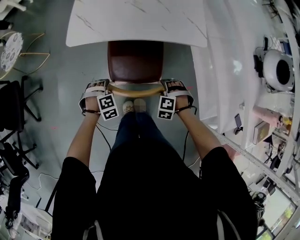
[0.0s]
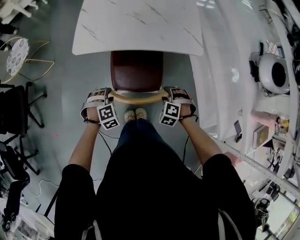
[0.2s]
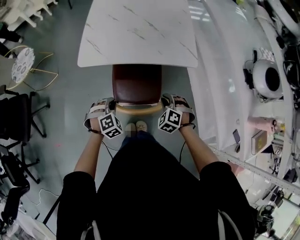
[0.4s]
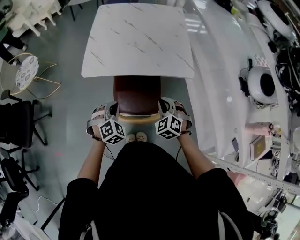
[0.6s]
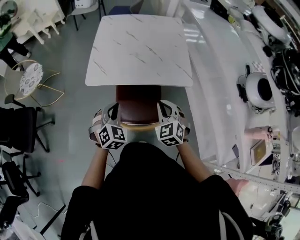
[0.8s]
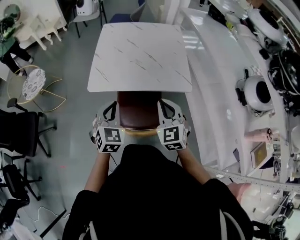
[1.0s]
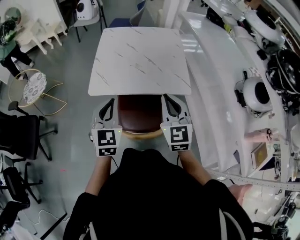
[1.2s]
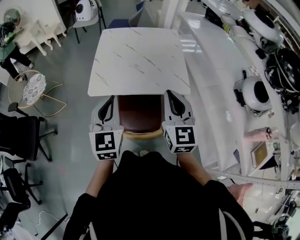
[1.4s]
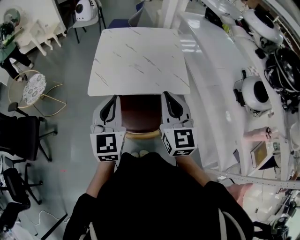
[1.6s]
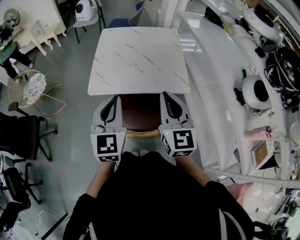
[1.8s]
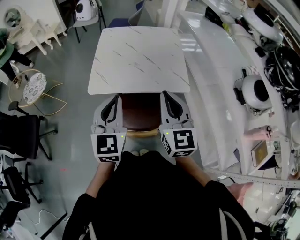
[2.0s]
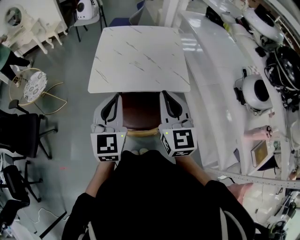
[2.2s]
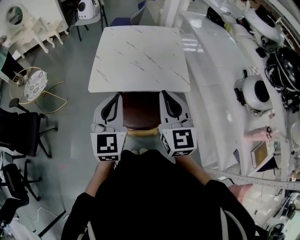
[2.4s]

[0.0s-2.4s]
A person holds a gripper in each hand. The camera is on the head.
0.0s to 1.2s: Both grippers move upward, some 40 cm. The left gripper points its fingers some 60 degrees further upward, and closes, while the right gripper angles its fingers upward, by about 60 degrees, and closes up.
1.2s to 2.4s: Both grippers move upward, roughly 5 cm.

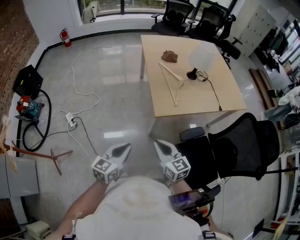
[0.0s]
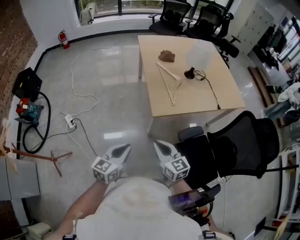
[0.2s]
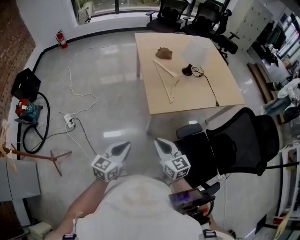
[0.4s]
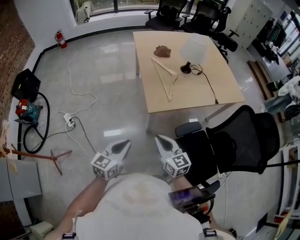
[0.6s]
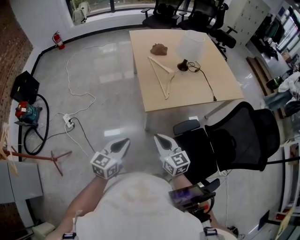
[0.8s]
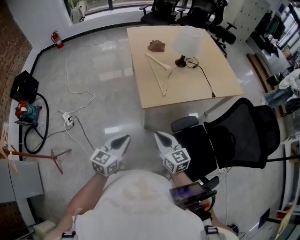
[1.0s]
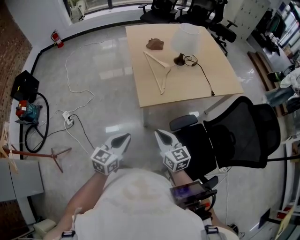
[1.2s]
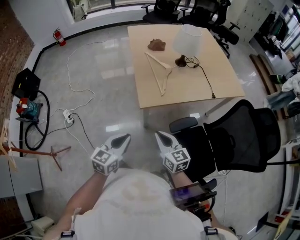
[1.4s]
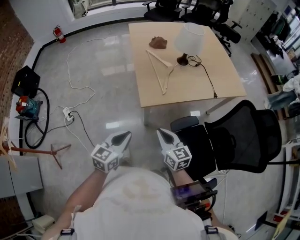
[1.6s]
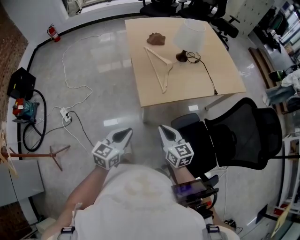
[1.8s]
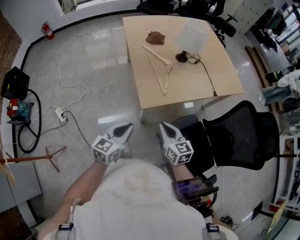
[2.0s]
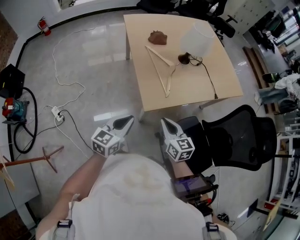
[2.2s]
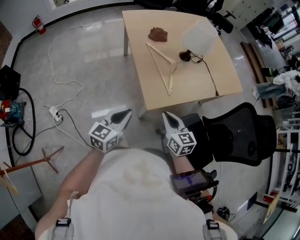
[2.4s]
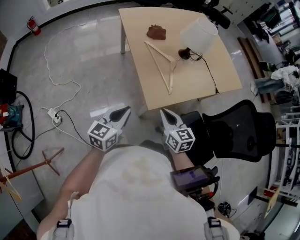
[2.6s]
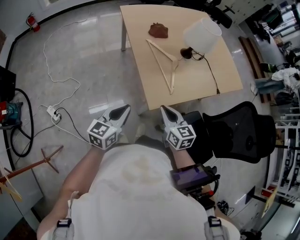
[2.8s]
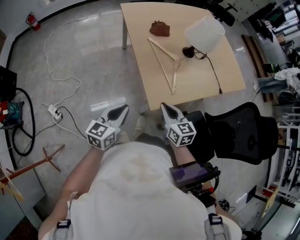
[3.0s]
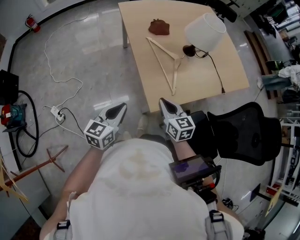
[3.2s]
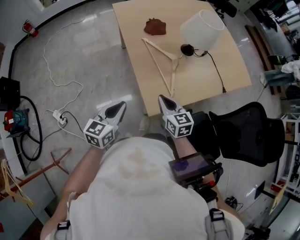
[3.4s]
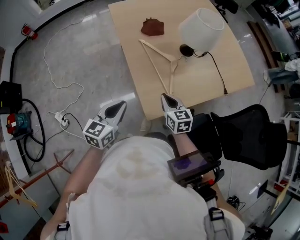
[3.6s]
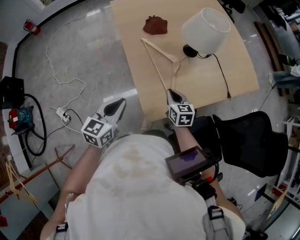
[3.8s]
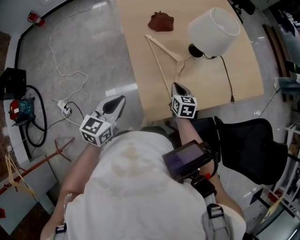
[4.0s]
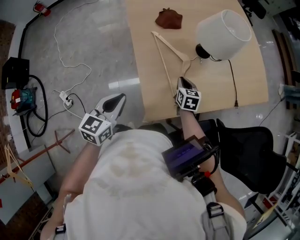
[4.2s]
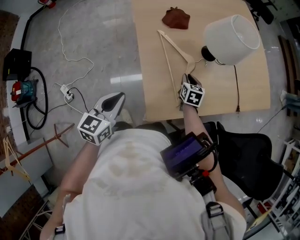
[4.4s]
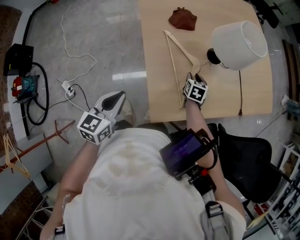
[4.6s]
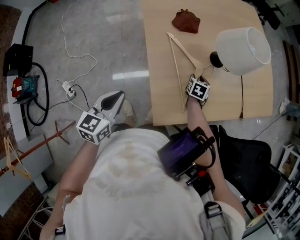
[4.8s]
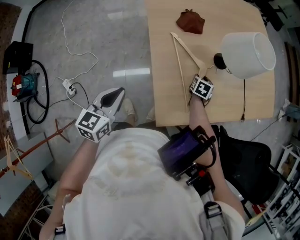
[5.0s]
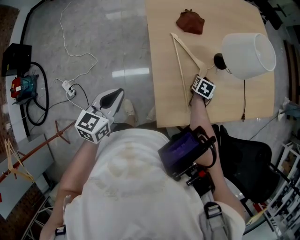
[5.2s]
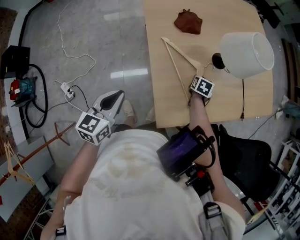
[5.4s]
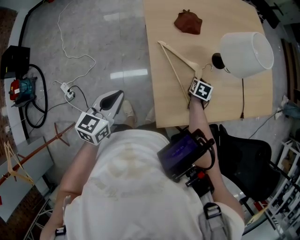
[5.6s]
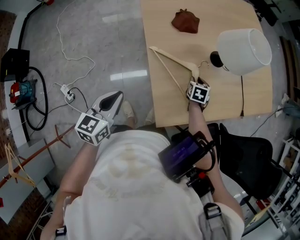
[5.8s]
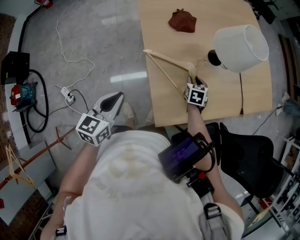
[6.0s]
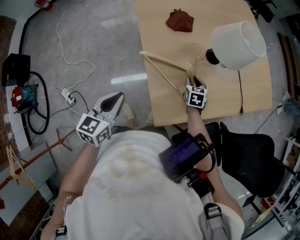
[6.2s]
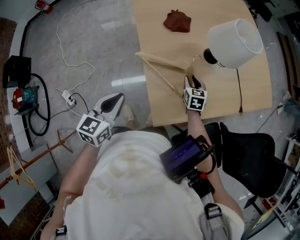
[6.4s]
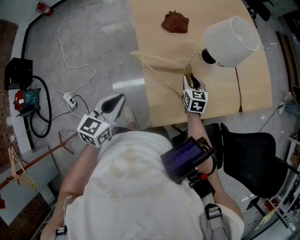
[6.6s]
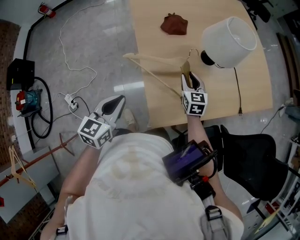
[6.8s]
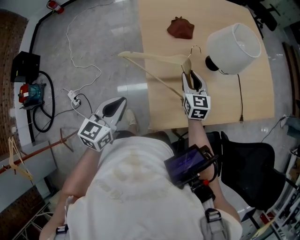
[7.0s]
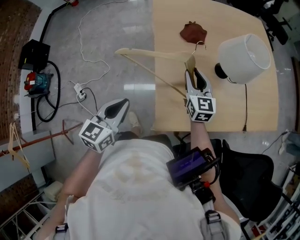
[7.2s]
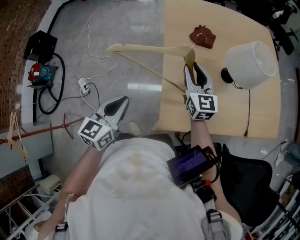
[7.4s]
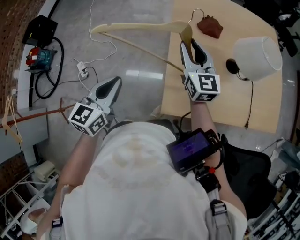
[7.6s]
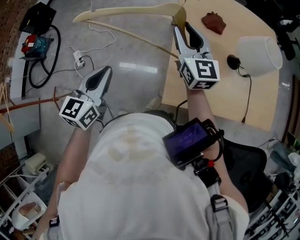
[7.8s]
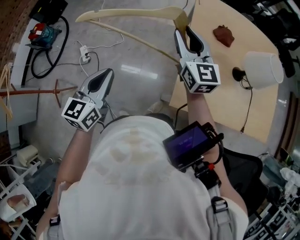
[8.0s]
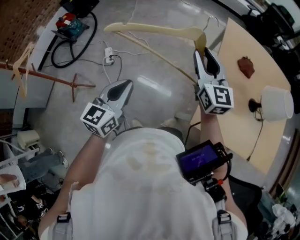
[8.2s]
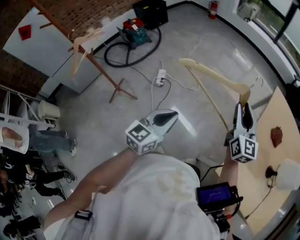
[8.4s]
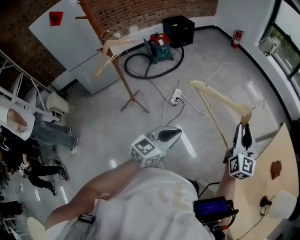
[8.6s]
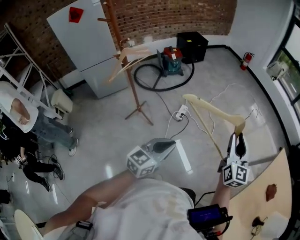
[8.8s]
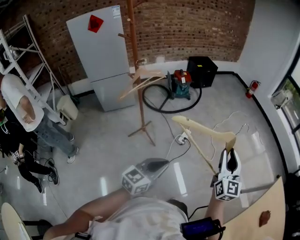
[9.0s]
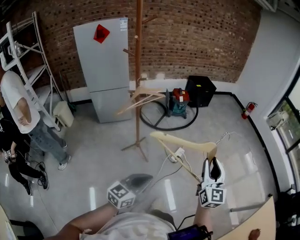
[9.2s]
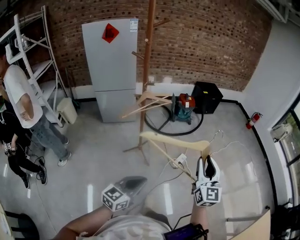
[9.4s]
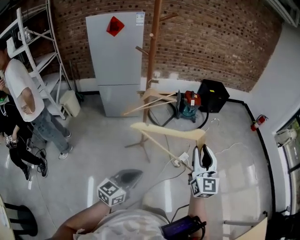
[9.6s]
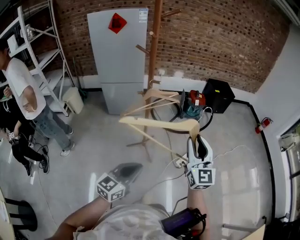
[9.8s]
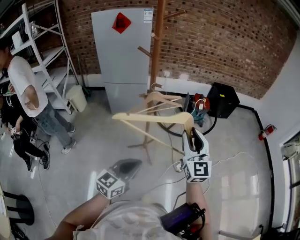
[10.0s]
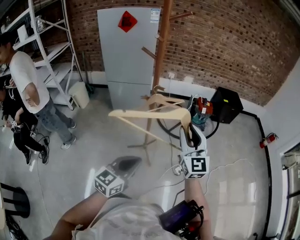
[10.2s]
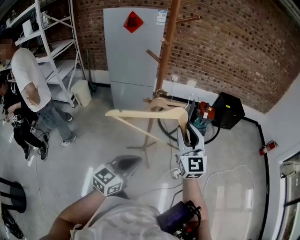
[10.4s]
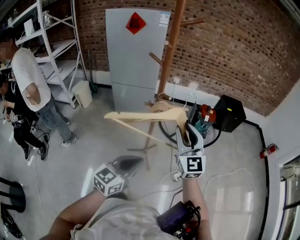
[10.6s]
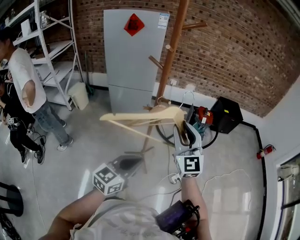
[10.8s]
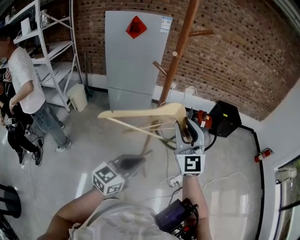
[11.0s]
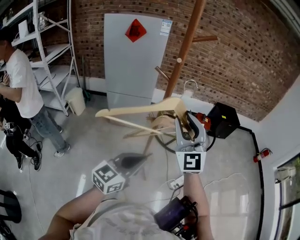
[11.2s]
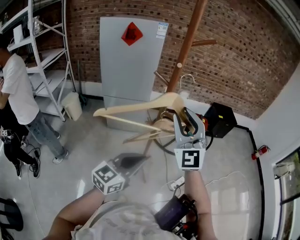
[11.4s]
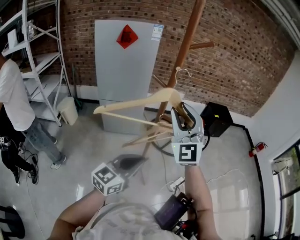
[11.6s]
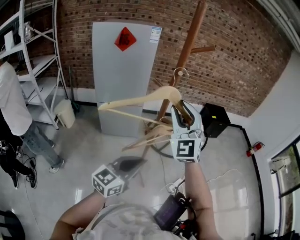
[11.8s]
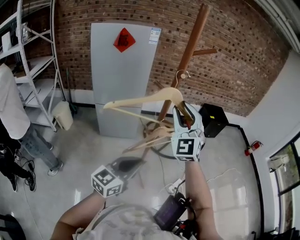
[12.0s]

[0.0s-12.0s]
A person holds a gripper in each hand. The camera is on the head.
0.0s to 1.6s: The two grippers go about 10 cm to the right.
1.6s to 3.0s: Both grippers move forward and to the left, some 25 cm.
3.0s to 4.4s: The right gripper moves forward, downward and to the right, approximately 35 cm, and swivels roughly 30 degrees. The left gripper moves forward, approximately 15 cm.
4.4s to 6.0s: The left gripper is displaced to the left by some 5 cm.
6.0s to 7.6s: The right gripper goes approximately 25 cm upward, and tips its fingers upward by some 50 degrees, while the left gripper moves upward, about 5 cm, and changes its angle by about 20 degrees.
7.6s to 9.0s: The pair of grippers is taken some 50 cm. The right gripper changes its angle by roughly 50 degrees; the left gripper rotates some 50 degrees.
9.0s to 10.4s: The right gripper moves approximately 50 cm, and turns by about 40 degrees. Meanwhile the left gripper shifts by approximately 25 cm, and rotates approximately 30 degrees.
10.4s to 12.0s: The left gripper heads to the left, forward and upward, covering approximately 15 cm; the right gripper goes some 25 cm to the left, upward and forward, and swivels some 40 degrees.

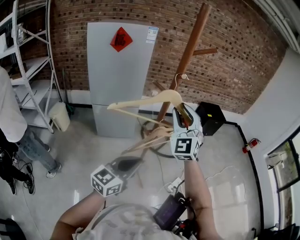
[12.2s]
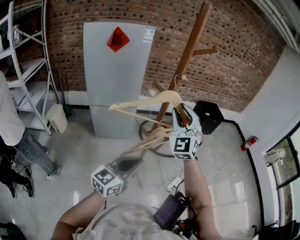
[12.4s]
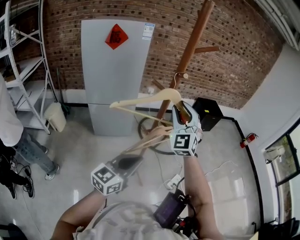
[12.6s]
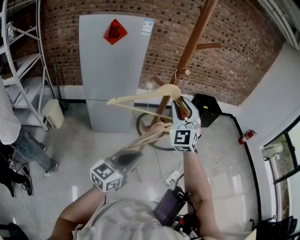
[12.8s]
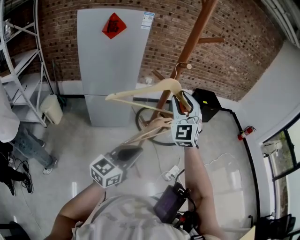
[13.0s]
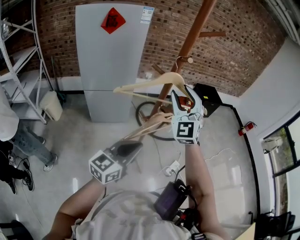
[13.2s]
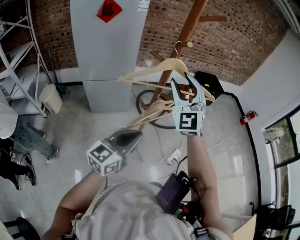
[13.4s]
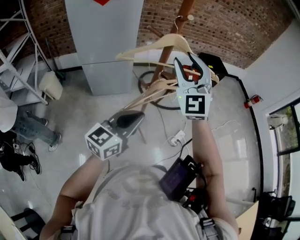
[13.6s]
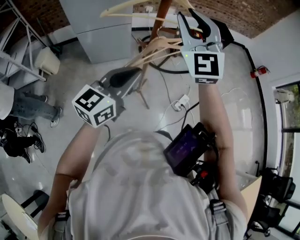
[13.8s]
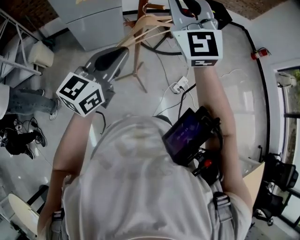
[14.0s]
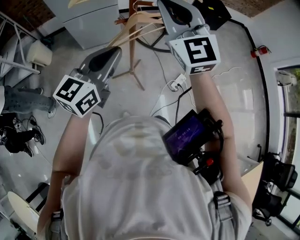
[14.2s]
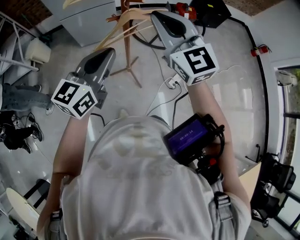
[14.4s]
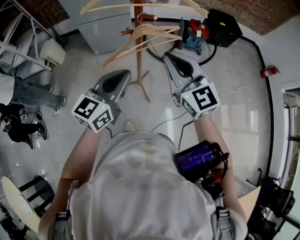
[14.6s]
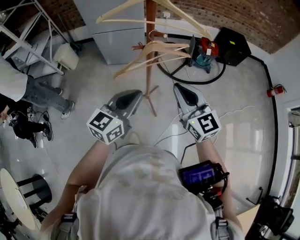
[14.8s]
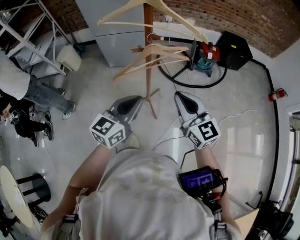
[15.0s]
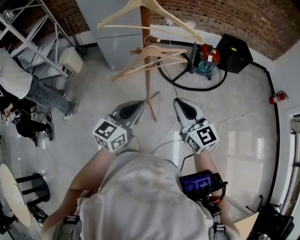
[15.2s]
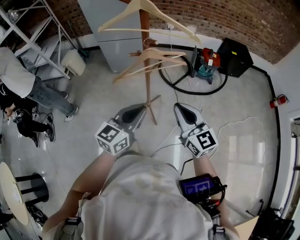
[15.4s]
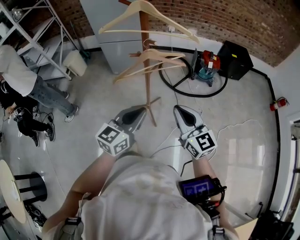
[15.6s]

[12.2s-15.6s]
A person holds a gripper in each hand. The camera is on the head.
12.2s to 13.8s: There are only small adjustments of the grippers.
13.8s to 15.6s: The right gripper goes some 30 cm downward, backward and to the right, twists about 40 degrees clockwise, seen from behind, and closes up, while the left gripper goes about 15 cm to the right, backward and downward.

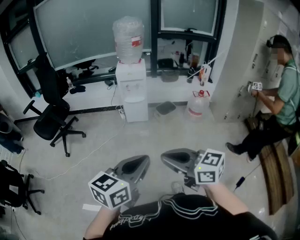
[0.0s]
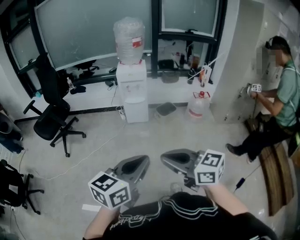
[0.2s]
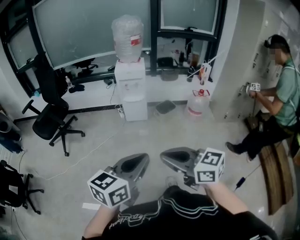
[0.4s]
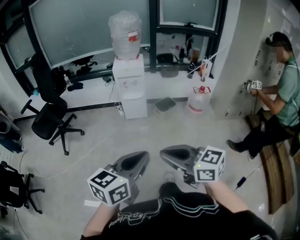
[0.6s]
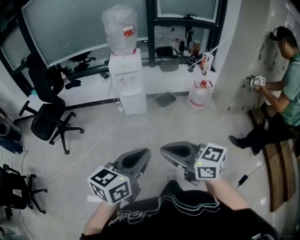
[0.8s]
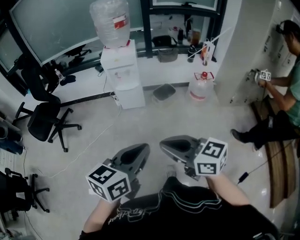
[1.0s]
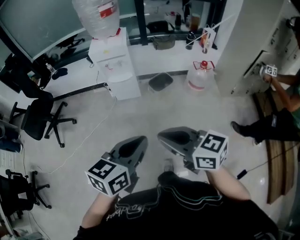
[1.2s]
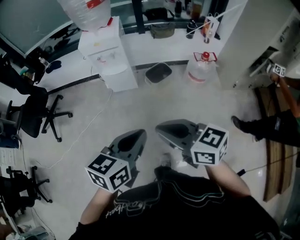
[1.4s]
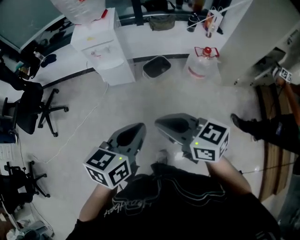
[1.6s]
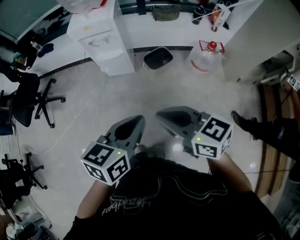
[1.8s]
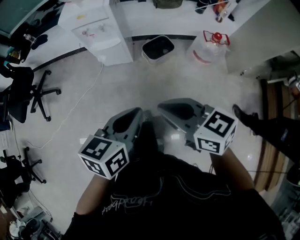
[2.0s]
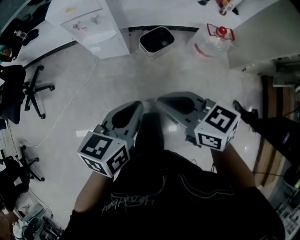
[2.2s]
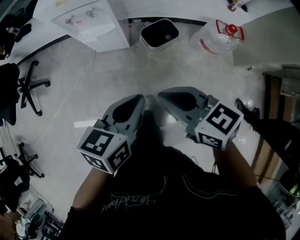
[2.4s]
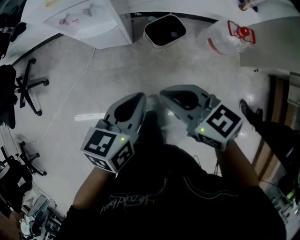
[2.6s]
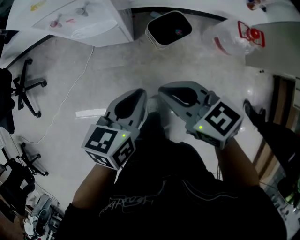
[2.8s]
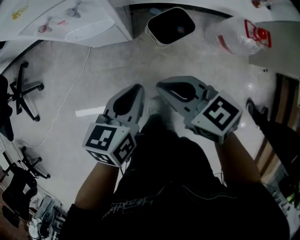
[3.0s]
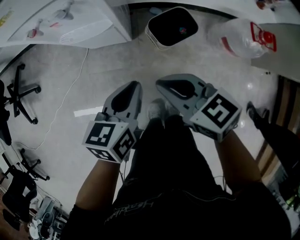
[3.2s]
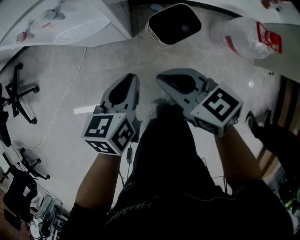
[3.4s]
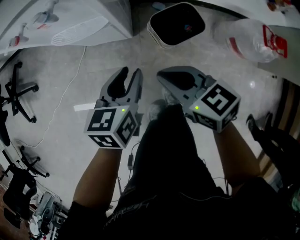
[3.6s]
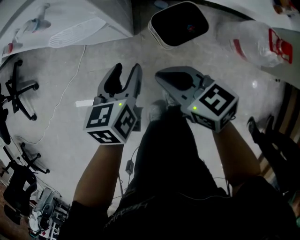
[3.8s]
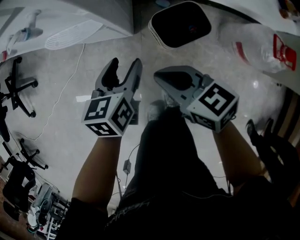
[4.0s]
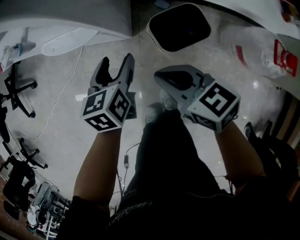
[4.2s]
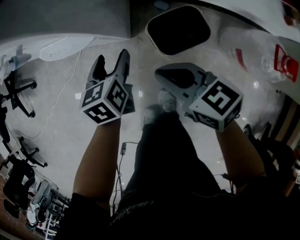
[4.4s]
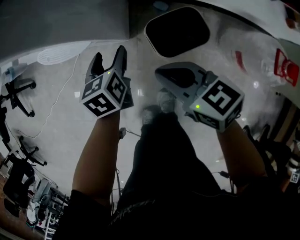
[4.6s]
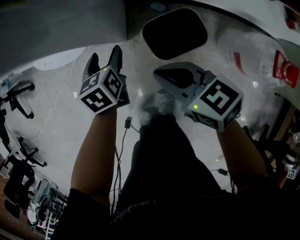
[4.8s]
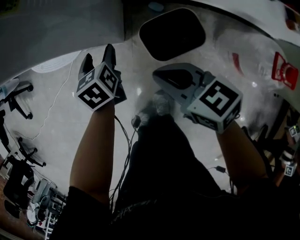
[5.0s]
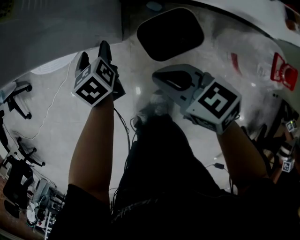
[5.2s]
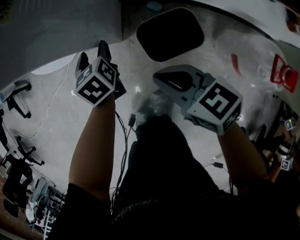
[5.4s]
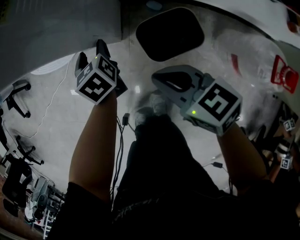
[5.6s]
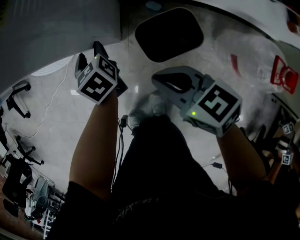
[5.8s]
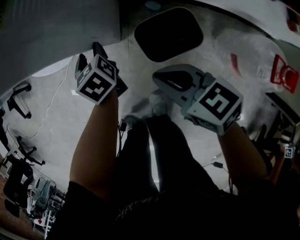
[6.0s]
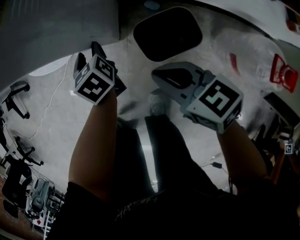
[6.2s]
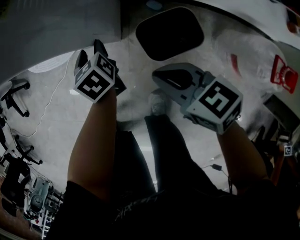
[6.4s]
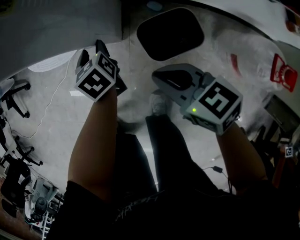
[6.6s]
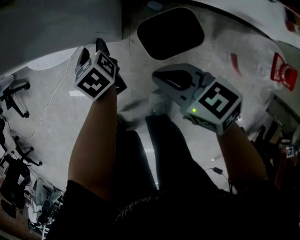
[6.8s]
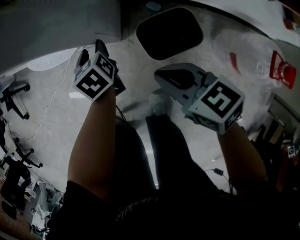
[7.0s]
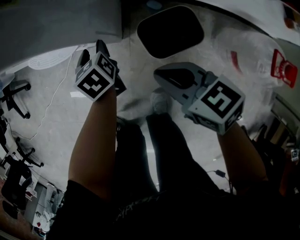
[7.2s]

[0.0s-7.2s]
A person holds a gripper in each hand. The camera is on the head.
0.0s to 1.4s: The right gripper travels forward and to the right by approximately 35 cm. The left gripper shifts roughly 35 cm forward, to the right and downward.
1.4s to 2.8s: Both grippers move forward and downward, about 40 cm.
2.8s to 4.4s: The right gripper is displaced downward, forward and to the right by some 25 cm. The left gripper travels downward and forward by roughly 30 cm, swivels about 30 degrees, and opens its fingers.
4.4s to 5.8s: The left gripper travels forward and downward by some 10 cm, and swivels about 30 degrees. Meanwhile the right gripper heads to the right, covering some 5 cm.
5.8s to 7.2s: The grippers move only a little.
